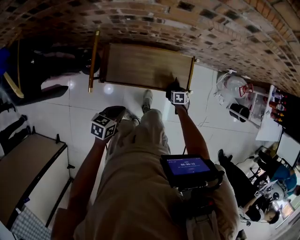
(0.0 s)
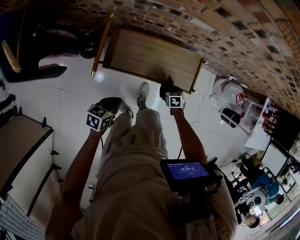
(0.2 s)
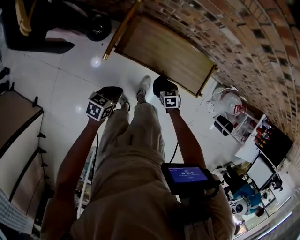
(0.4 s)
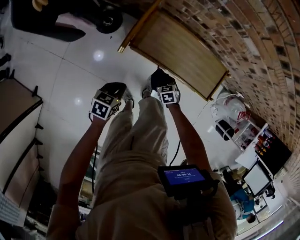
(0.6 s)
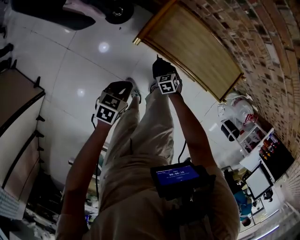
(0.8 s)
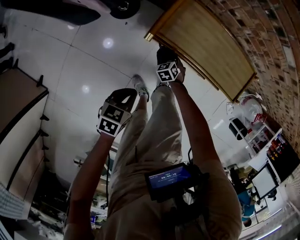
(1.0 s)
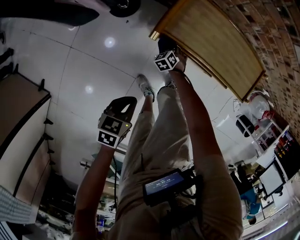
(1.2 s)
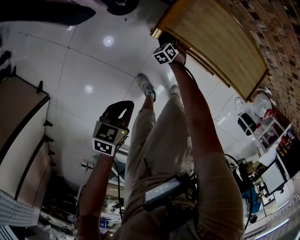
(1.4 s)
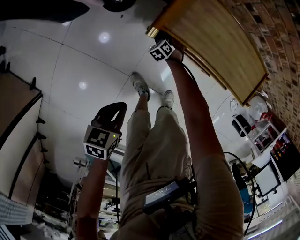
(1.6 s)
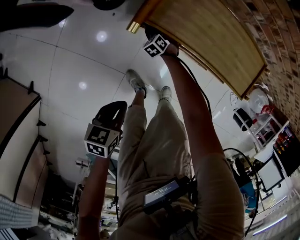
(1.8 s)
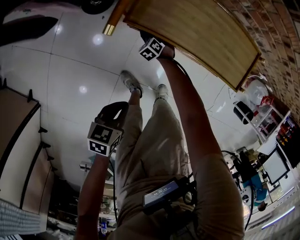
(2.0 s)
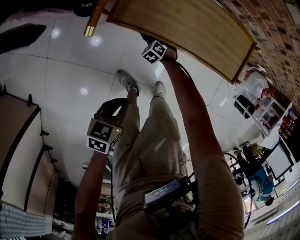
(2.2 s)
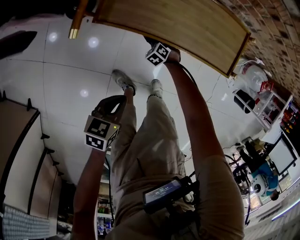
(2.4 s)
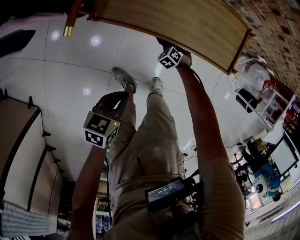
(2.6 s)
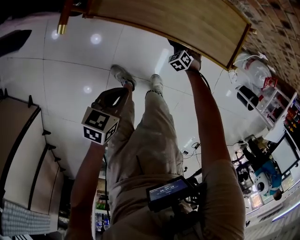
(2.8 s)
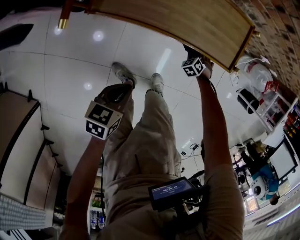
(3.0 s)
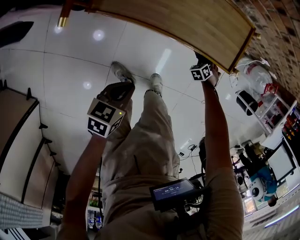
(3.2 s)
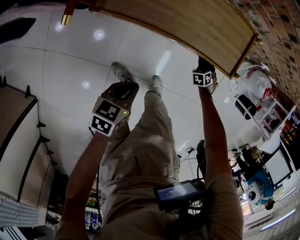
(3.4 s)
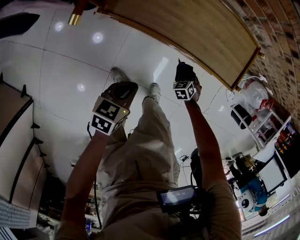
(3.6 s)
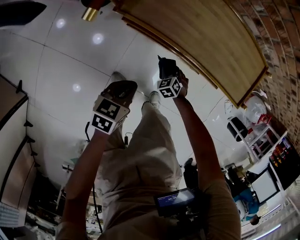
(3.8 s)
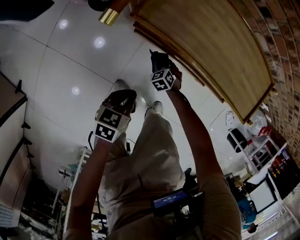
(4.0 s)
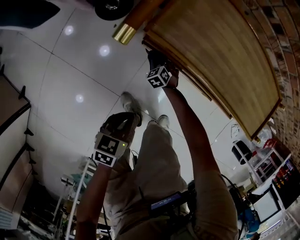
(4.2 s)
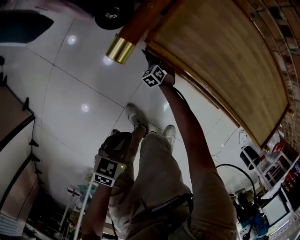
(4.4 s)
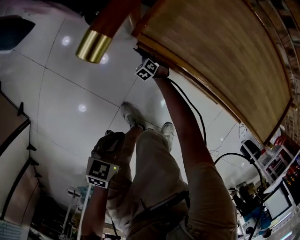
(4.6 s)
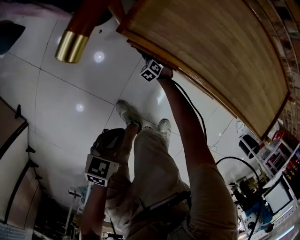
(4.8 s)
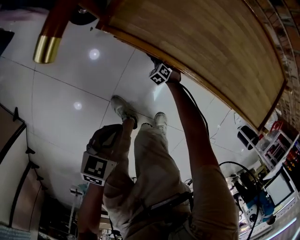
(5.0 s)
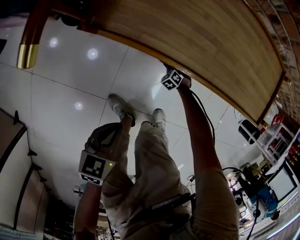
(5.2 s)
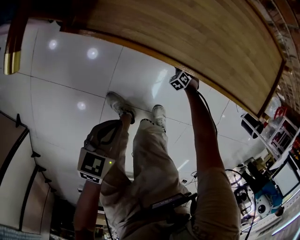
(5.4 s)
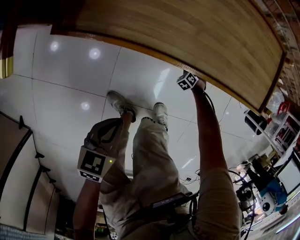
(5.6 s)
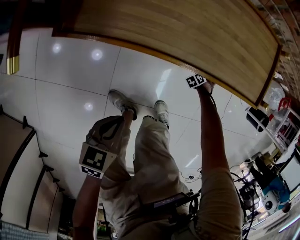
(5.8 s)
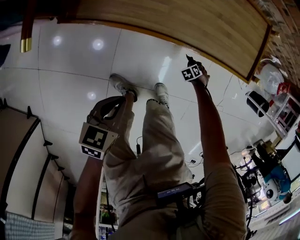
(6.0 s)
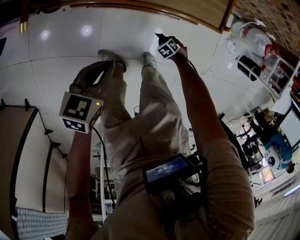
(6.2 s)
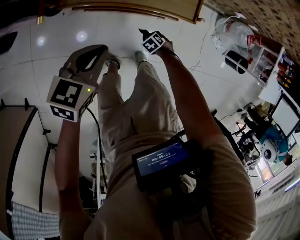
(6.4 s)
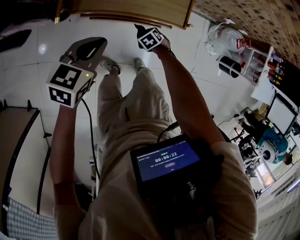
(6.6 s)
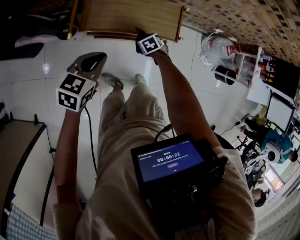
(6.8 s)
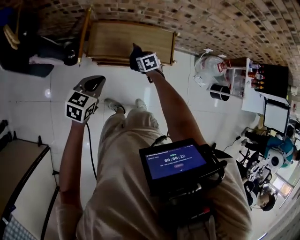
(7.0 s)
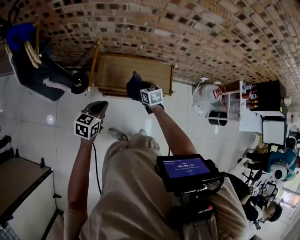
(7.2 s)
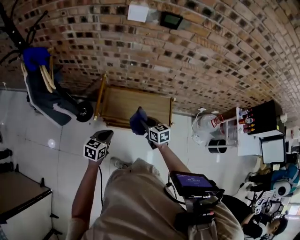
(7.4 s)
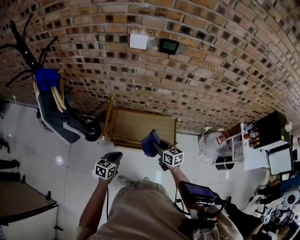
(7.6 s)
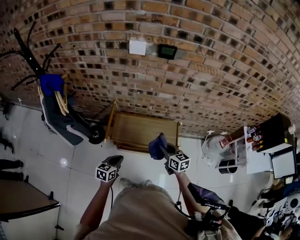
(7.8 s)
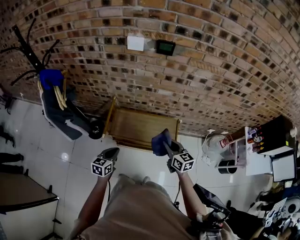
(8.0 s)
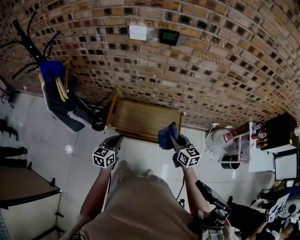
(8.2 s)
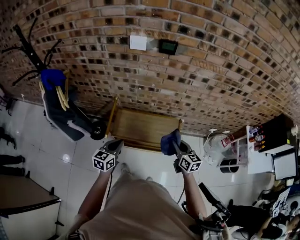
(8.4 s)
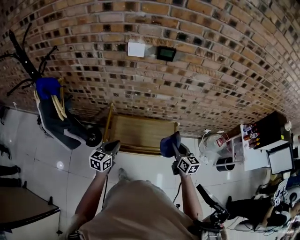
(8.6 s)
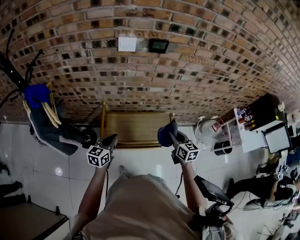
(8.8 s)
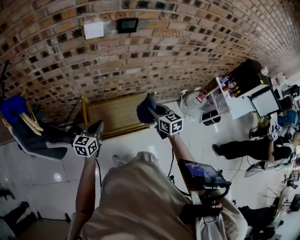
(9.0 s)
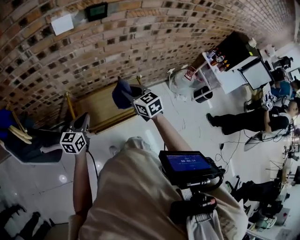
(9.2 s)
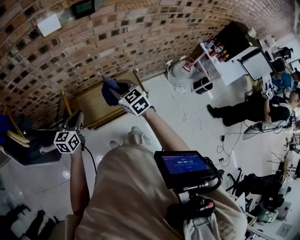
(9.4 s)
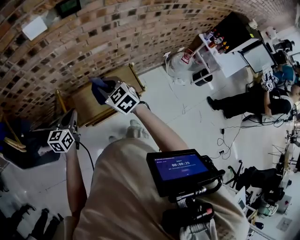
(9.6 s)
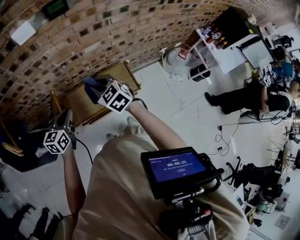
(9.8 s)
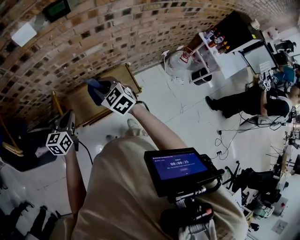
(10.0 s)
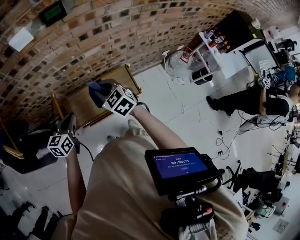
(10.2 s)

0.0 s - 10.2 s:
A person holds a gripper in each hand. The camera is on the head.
0.0 s - 1.4 s: The left gripper shifts by roughly 30 cm, and rotates some 20 degrees, while the right gripper changes place by approximately 50 cm, and twists approximately 60 degrees counterclockwise, seen from behind.
1.4 s - 3.0 s: The left gripper shifts by approximately 20 cm. The right gripper ends up roughly 50 cm from where it was.
3.0 s - 4.4 s: The left gripper is displaced downward by approximately 15 cm, while the right gripper moves some 50 cm, and turns by roughly 20 degrees.
4.4 s - 5.8 s: The right gripper moves about 60 cm, and rotates some 50 degrees; the left gripper moves roughly 10 cm.
5.8 s - 7.2 s: The right gripper travels upward by approximately 70 cm, and swivels roughly 70 degrees. Meanwhile the left gripper goes about 40 cm upward.
7.2 s - 8.8 s: The left gripper is displaced forward and upward by roughly 15 cm; the right gripper goes roughly 25 cm upward and to the right, and changes its angle by some 30 degrees.
8.8 s - 10.2 s: The right gripper goes some 10 cm to the left and forward, and rotates approximately 30 degrees, while the left gripper travels forward by about 5 cm.

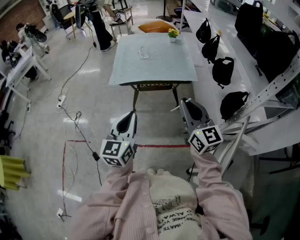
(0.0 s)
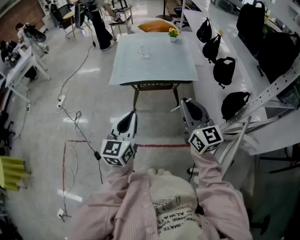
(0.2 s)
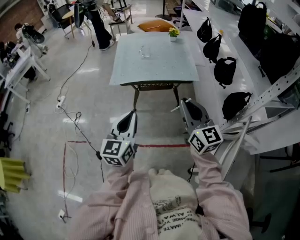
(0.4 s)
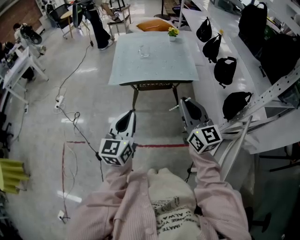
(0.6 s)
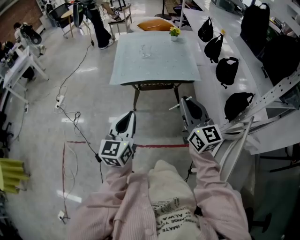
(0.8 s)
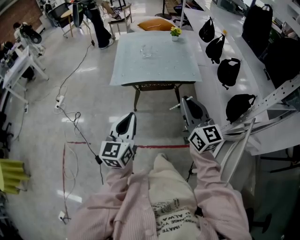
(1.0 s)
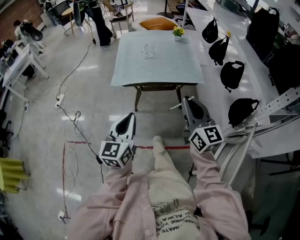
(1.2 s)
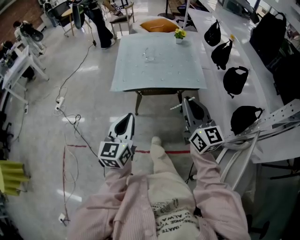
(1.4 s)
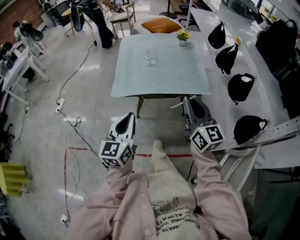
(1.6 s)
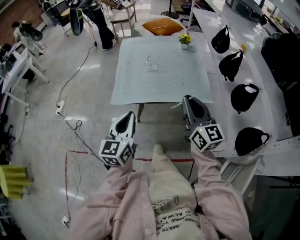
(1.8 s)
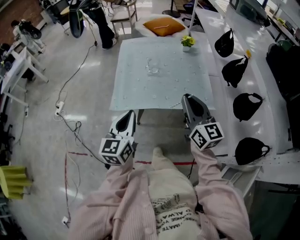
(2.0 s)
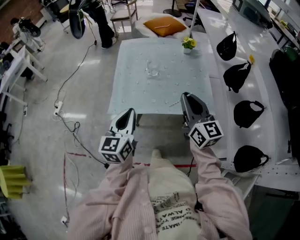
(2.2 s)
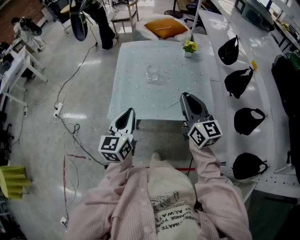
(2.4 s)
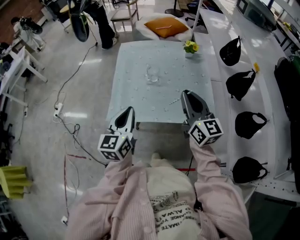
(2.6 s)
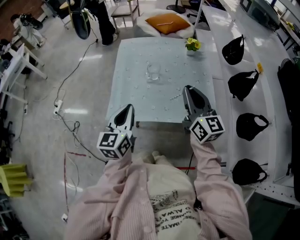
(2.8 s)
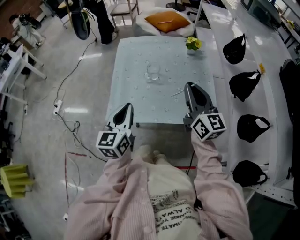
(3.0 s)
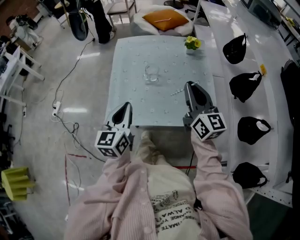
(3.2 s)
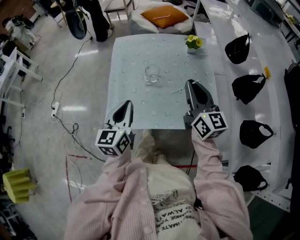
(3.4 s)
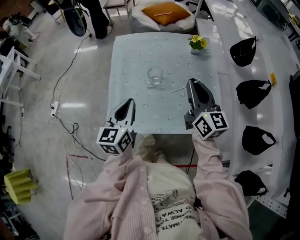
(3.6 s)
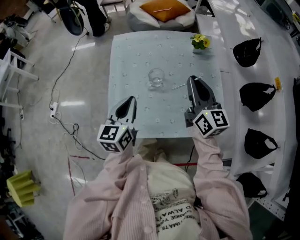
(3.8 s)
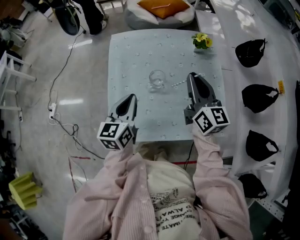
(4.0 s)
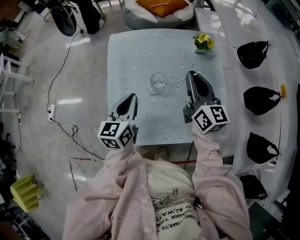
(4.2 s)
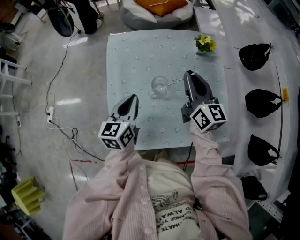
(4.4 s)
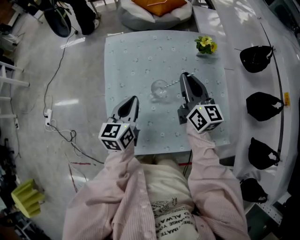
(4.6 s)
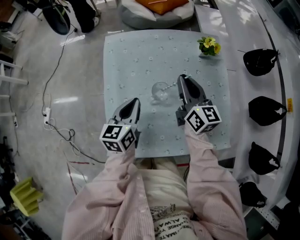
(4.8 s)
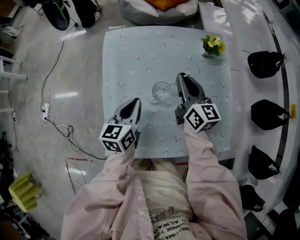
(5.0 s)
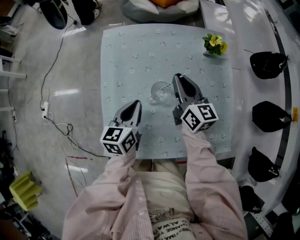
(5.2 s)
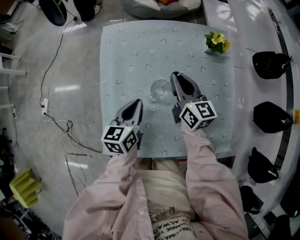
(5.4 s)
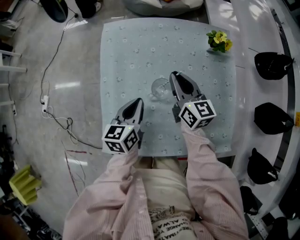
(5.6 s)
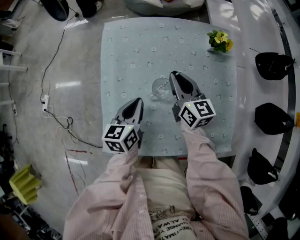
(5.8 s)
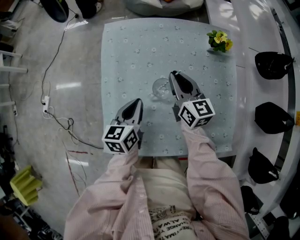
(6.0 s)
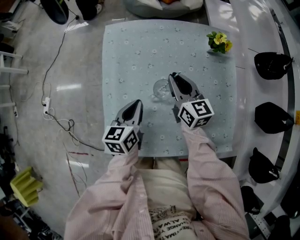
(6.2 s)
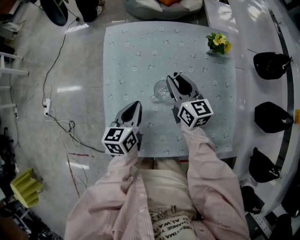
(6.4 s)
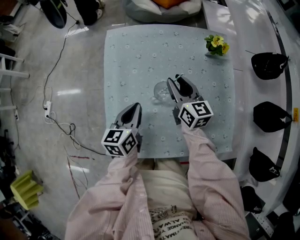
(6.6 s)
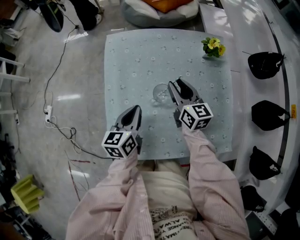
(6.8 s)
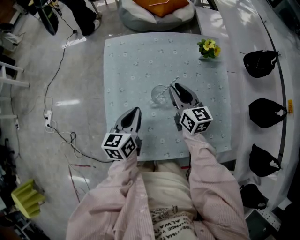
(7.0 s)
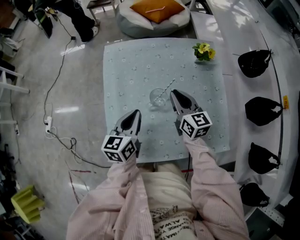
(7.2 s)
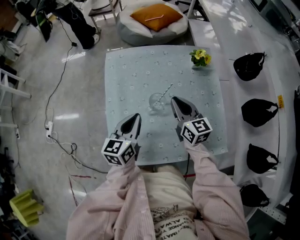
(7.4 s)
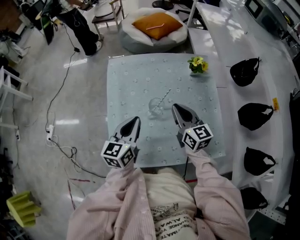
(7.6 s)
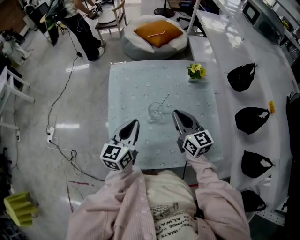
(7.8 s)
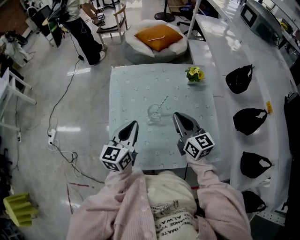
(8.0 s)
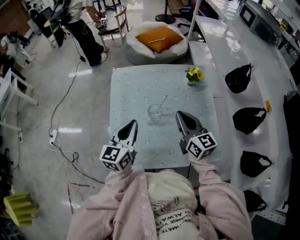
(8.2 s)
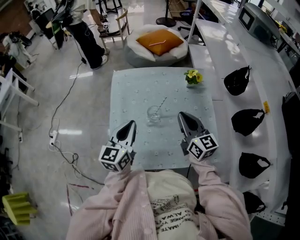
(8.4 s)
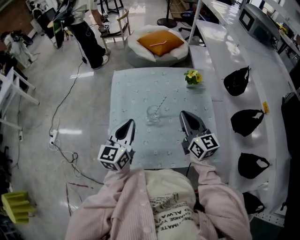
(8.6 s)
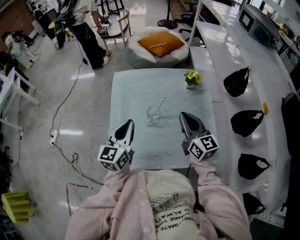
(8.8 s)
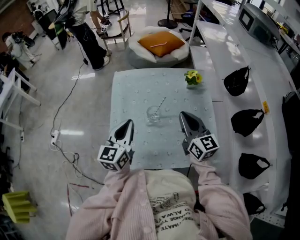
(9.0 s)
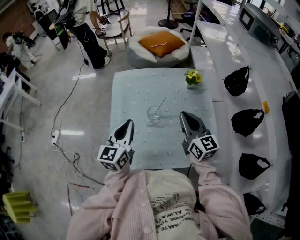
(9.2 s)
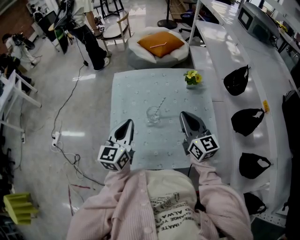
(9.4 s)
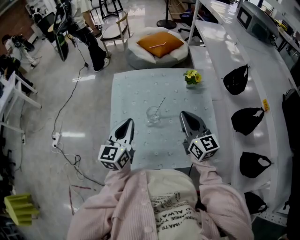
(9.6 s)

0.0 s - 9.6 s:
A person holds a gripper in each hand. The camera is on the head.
0.0 s - 1.6 s: Both grippers move forward, approximately 15 cm.
1.6 s - 3.2 s: Both grippers move forward, approximately 30 cm.
3.2 s - 4.8 s: The grippers both shift forward and downward by approximately 25 cm.
4.8 s - 6.4 s: The right gripper shifts some 10 cm downward.
6.4 s - 8.0 s: The left gripper shifts some 15 cm upward, and rotates some 20 degrees. The right gripper goes approximately 15 cm upward, backward and to the right, and closes.
8.0 s - 9.6 s: The right gripper ends up roughly 5 cm from where it was.

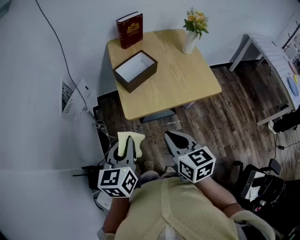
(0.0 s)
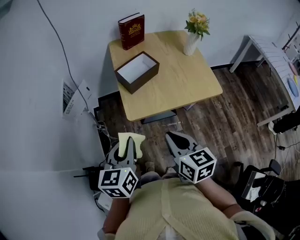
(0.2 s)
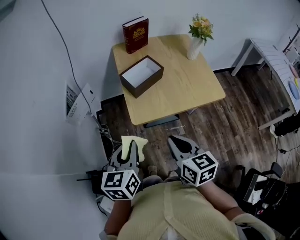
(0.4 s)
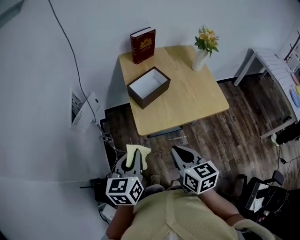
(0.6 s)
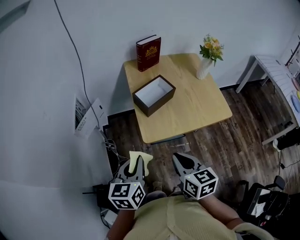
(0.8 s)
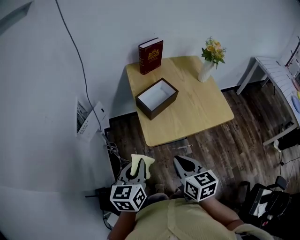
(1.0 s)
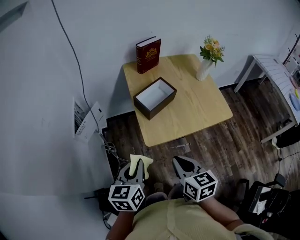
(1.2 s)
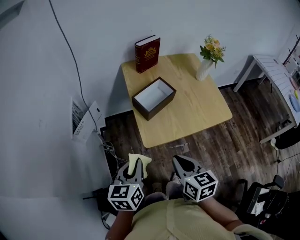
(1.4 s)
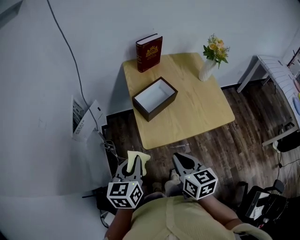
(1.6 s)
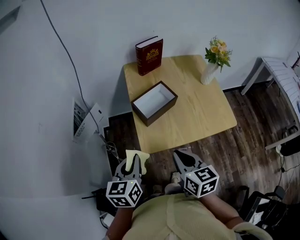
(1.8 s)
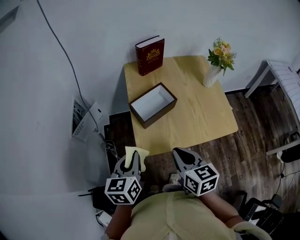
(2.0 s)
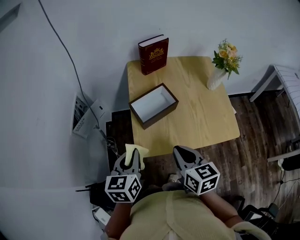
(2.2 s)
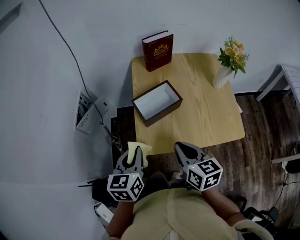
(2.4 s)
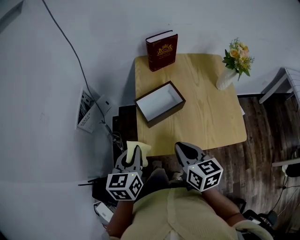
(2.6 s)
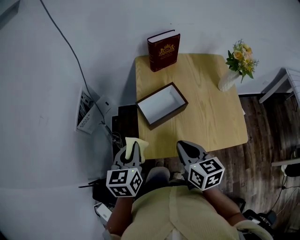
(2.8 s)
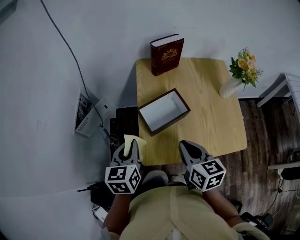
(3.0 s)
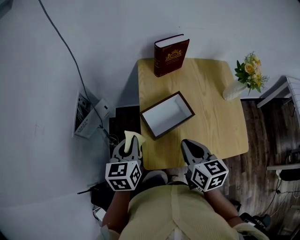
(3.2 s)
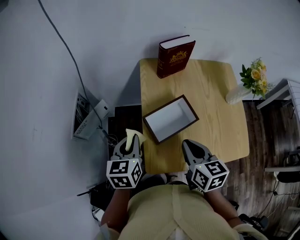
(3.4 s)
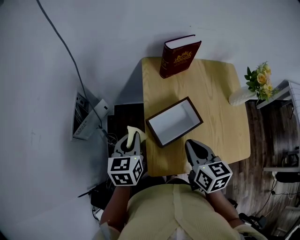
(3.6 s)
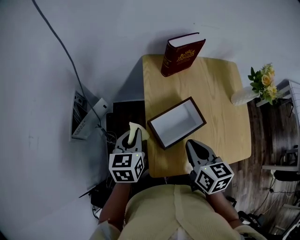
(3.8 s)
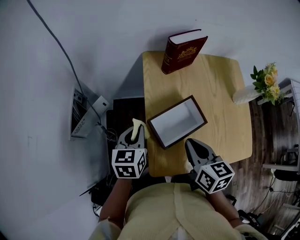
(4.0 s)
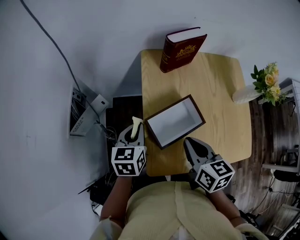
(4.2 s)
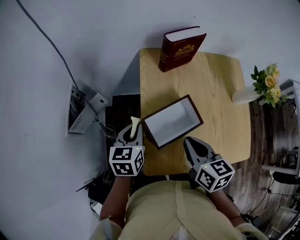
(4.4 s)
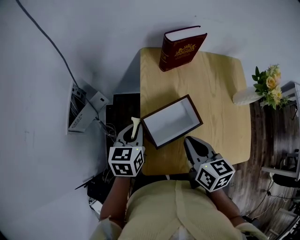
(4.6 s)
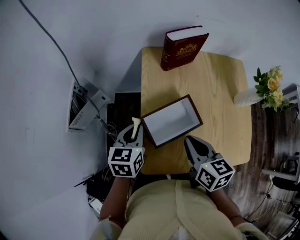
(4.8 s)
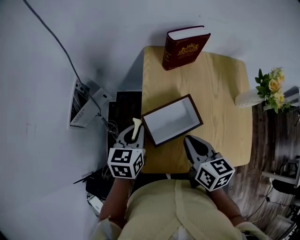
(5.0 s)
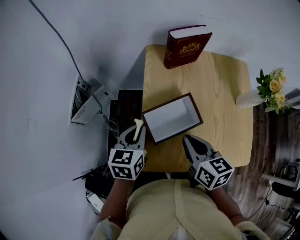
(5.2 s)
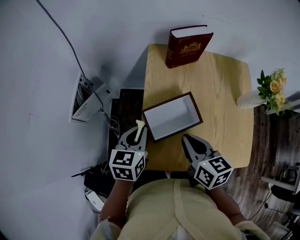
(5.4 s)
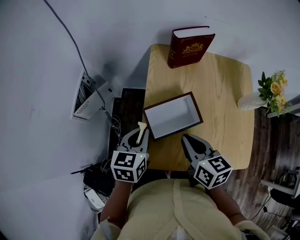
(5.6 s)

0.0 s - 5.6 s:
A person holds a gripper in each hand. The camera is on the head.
0.0 s - 1.4 s: The right gripper moves roughly 5 cm, while the left gripper moves to the left and forward, about 10 cm.
1.4 s - 2.8 s: The right gripper heads forward and to the right, covering approximately 15 cm. The left gripper moves forward, about 10 cm.
2.8 s - 4.2 s: Both grippers travel together forward, roughly 15 cm.
4.2 s - 5.6 s: The left gripper travels backward by about 5 cm.
